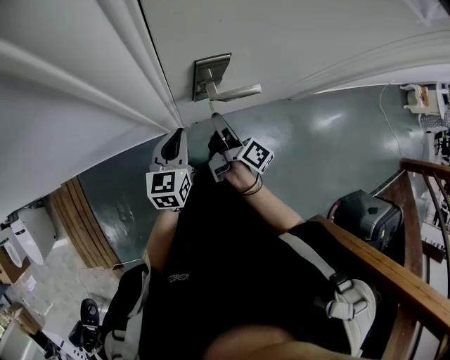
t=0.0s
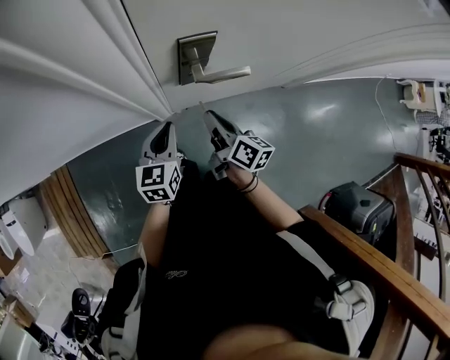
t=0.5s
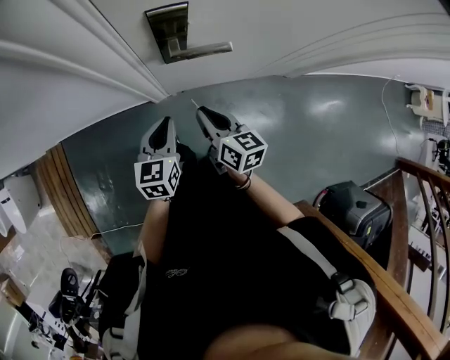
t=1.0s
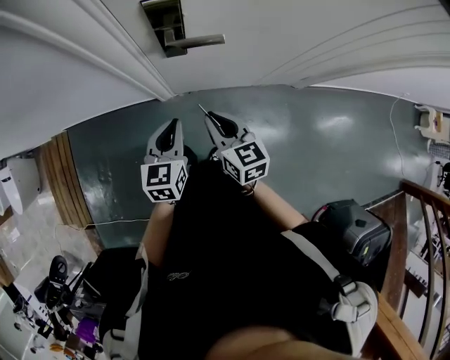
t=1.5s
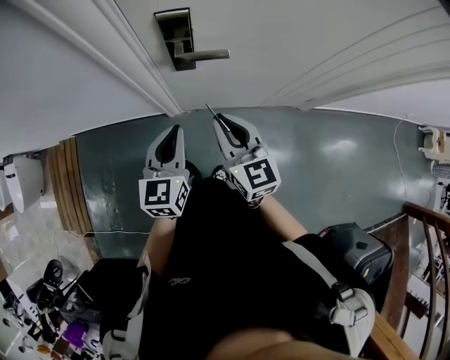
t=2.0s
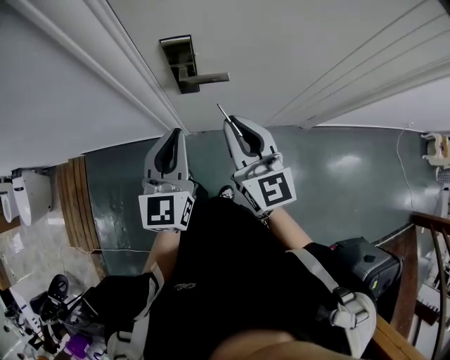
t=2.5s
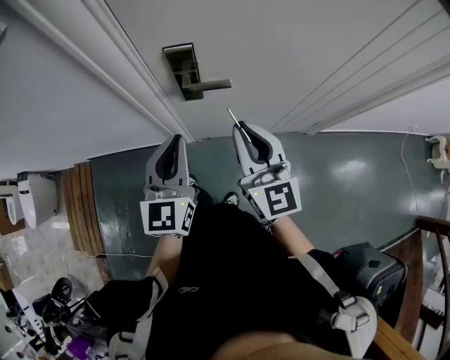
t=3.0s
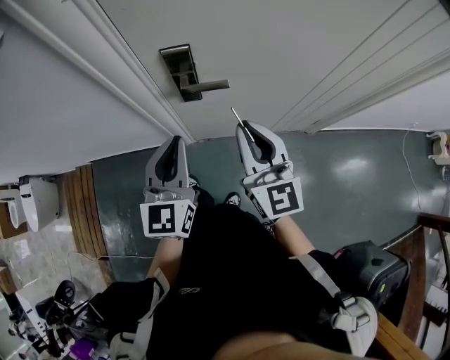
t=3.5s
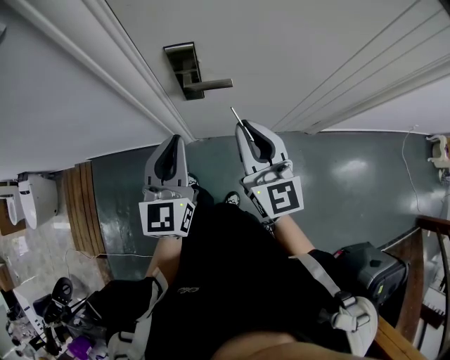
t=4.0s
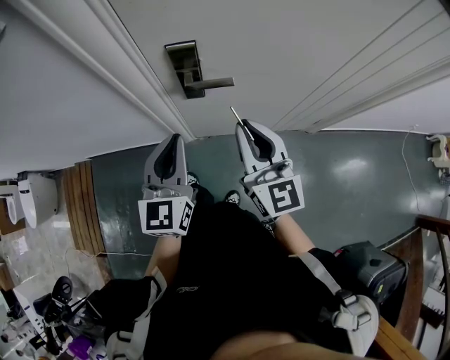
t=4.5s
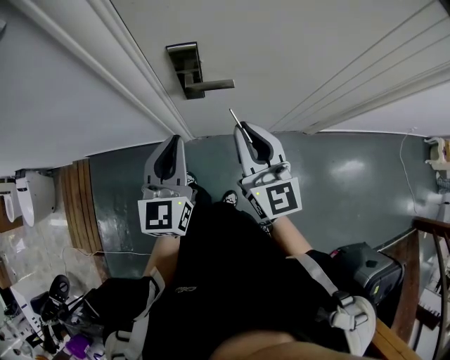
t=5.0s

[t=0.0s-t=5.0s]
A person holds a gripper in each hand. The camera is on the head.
t=0.0s to t=2.5s: Both grippers travel together upward, backward and to the right, approximately 20 cm. The right gripper rolls counterclockwise, seen from behind, by roughly 70 degrees. The left gripper changes its angle by approximately 30 degrees.
t=2.5s to t=5.0s: The grippers move only a little.

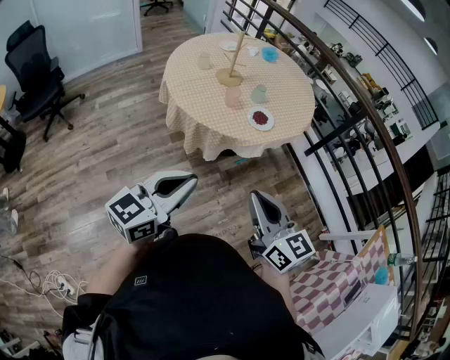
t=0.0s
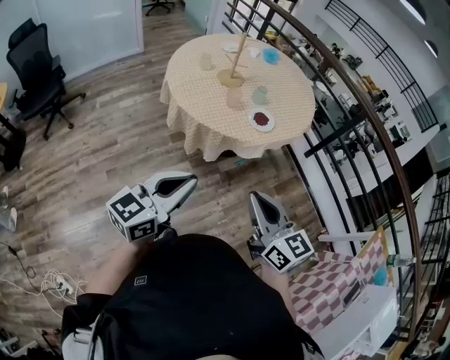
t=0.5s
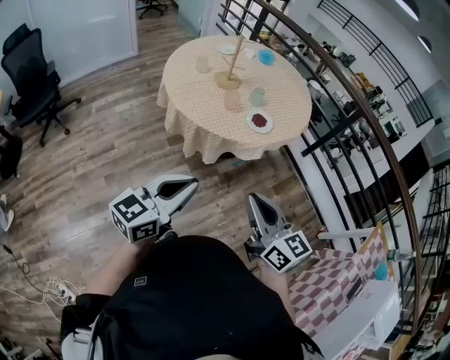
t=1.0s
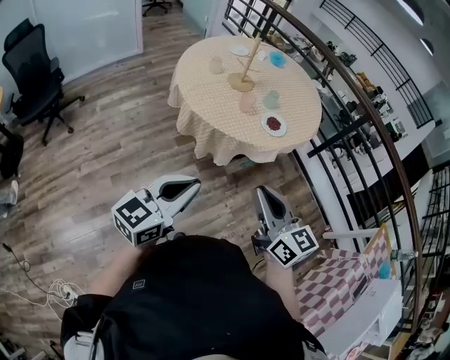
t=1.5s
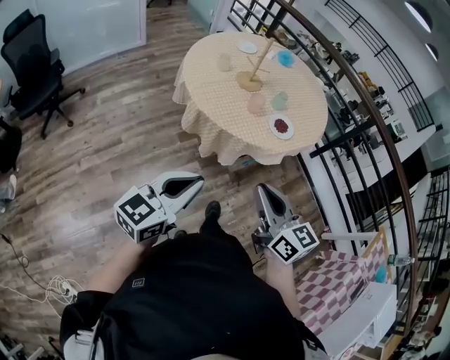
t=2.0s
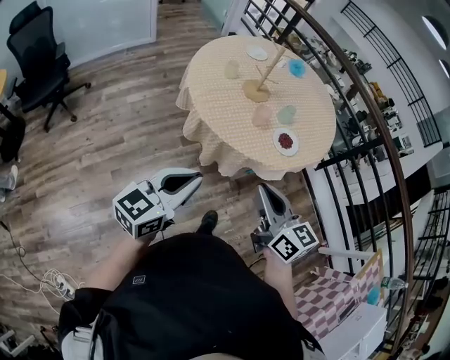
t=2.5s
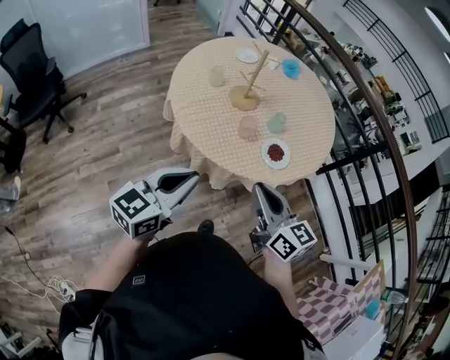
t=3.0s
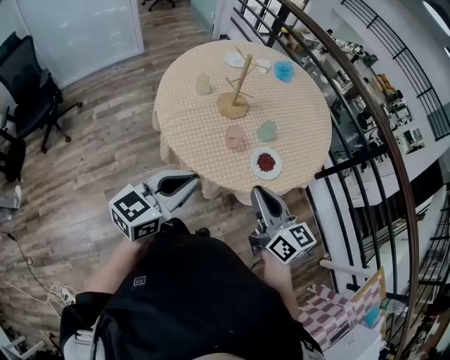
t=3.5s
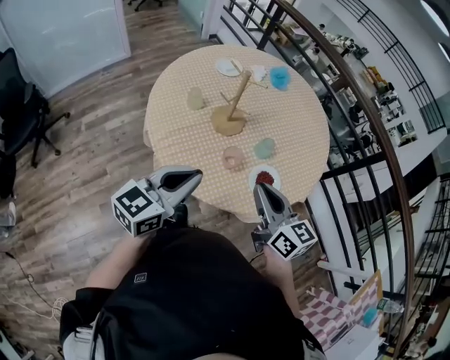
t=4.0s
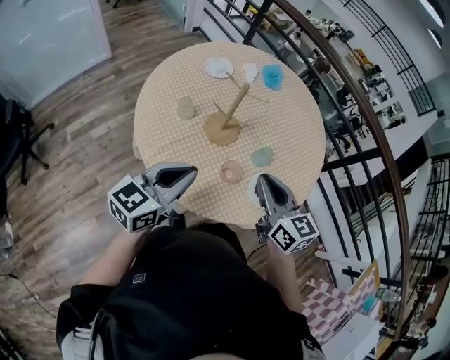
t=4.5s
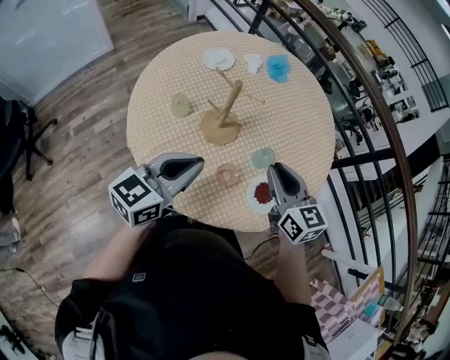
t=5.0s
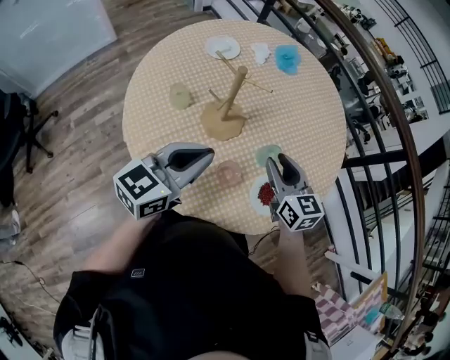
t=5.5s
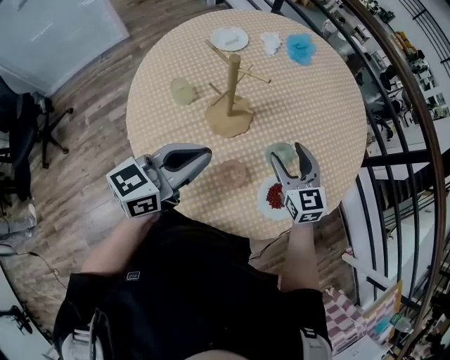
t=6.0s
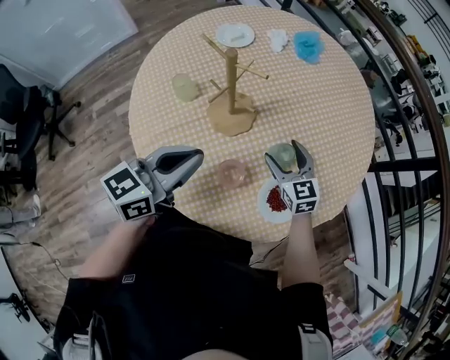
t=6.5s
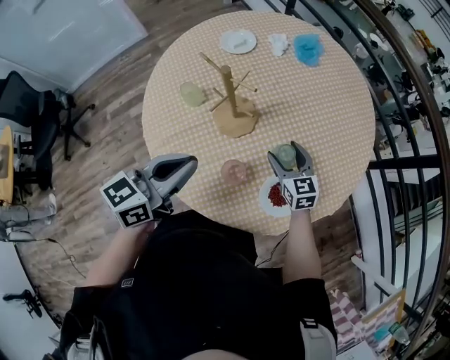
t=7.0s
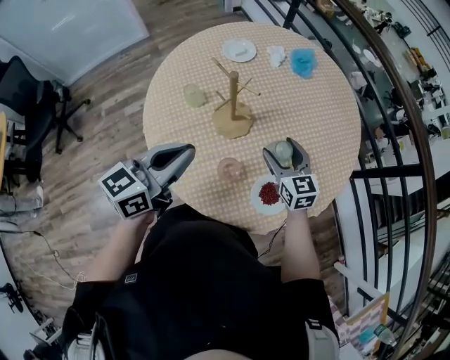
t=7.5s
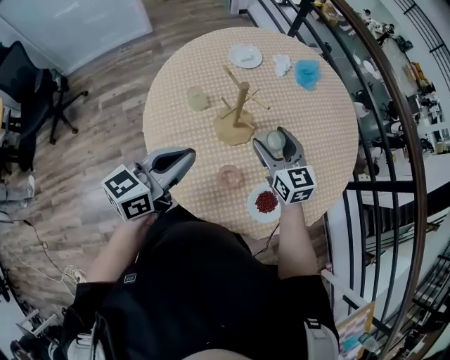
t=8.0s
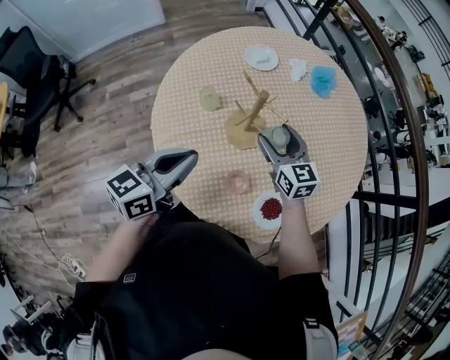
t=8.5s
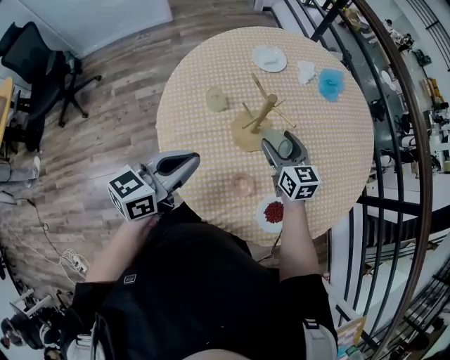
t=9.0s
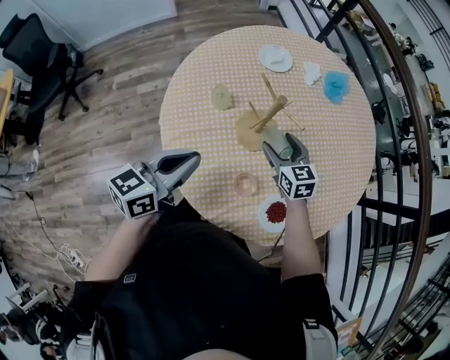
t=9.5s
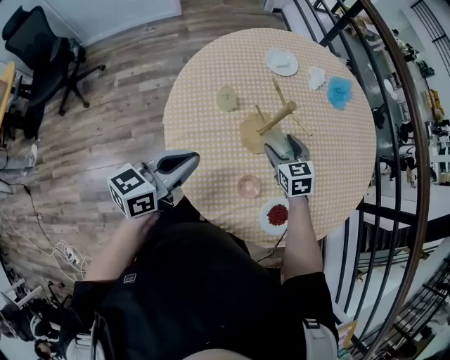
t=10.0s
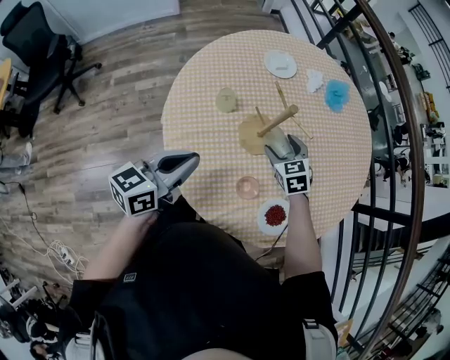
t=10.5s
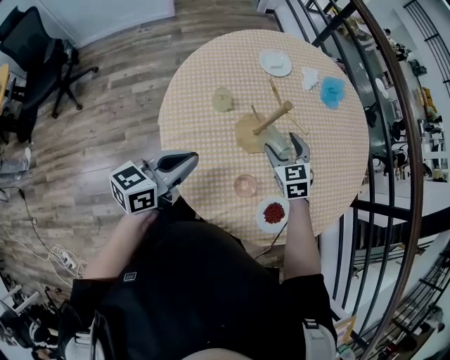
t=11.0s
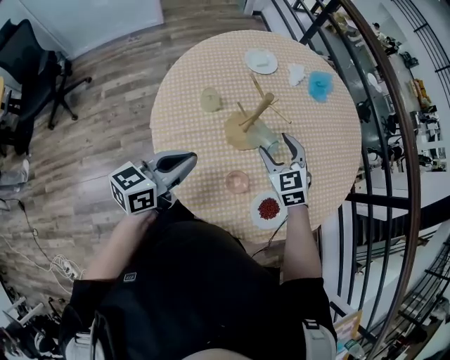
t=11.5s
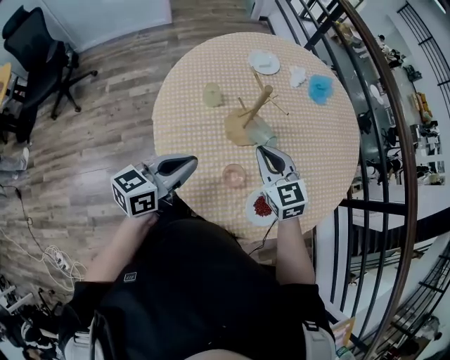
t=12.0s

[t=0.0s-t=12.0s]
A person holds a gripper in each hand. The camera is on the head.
t=0.0s to t=2.0s: Both grippers travel together to the left, some 15 cm.
t=2.0s to t=4.0s: The two grippers go about 35 cm forward.
t=4.0s to t=6.0s: Both grippers move forward and downward, approximately 25 cm. The right gripper swivels some 30 degrees, and opens.
t=6.0s to t=8.0s: The left gripper shifts approximately 5 cm upward, while the right gripper shifts approximately 10 cm upward and to the left.
t=8.0s to t=10.0s: The right gripper goes some 10 cm downward, and rotates roughly 20 degrees. Meanwhile the left gripper goes approximately 5 cm to the left.
t=10.0s to t=12.0s: The right gripper shifts about 15 cm upward and backward, and closes. Meanwhile the left gripper ends up some 5 cm from where it was.

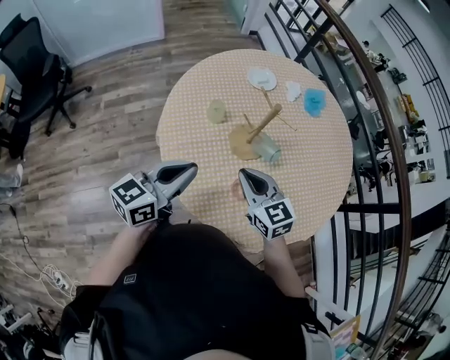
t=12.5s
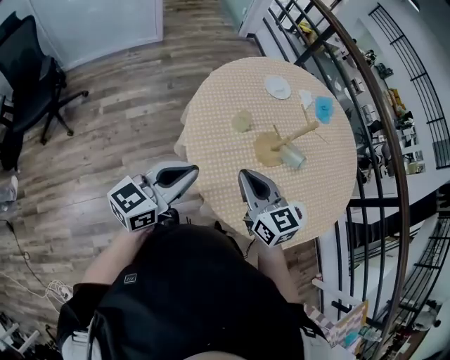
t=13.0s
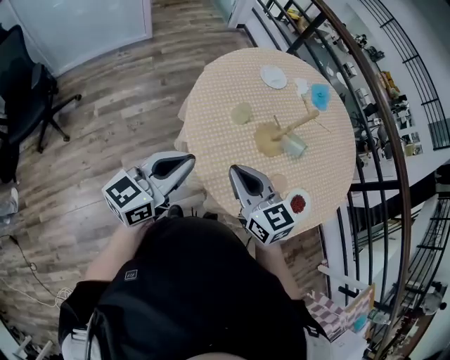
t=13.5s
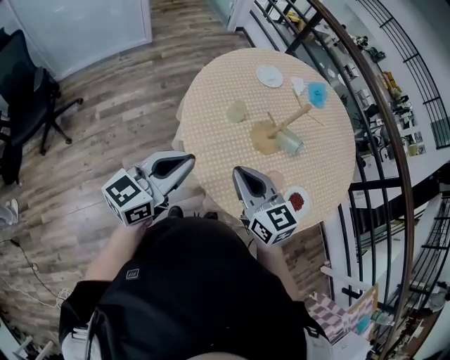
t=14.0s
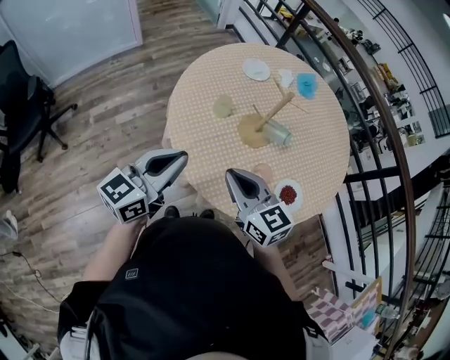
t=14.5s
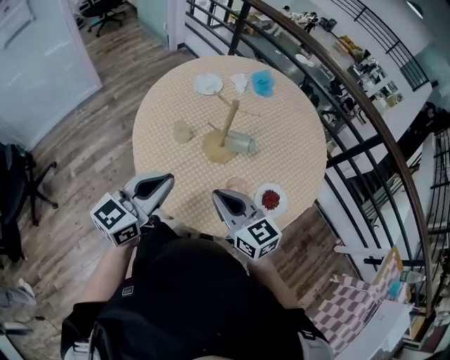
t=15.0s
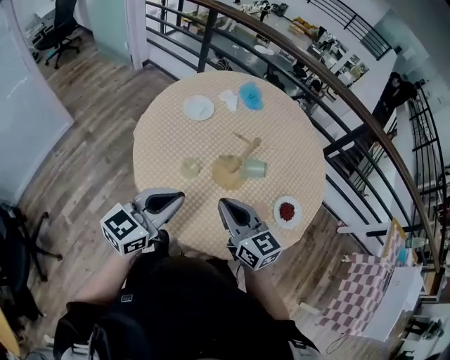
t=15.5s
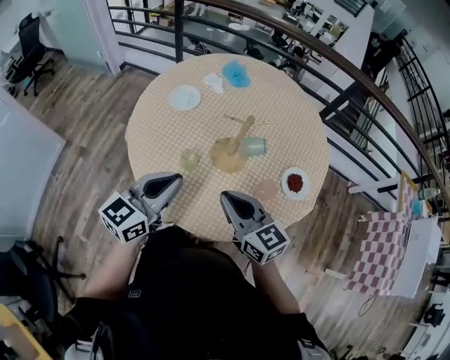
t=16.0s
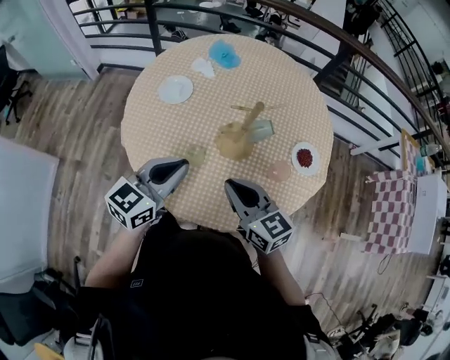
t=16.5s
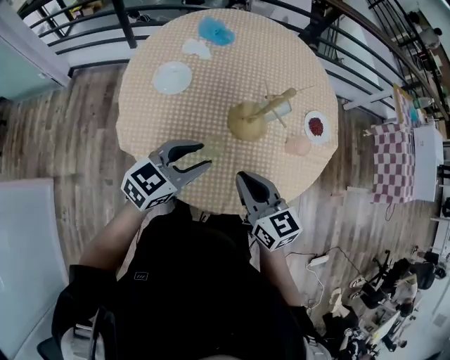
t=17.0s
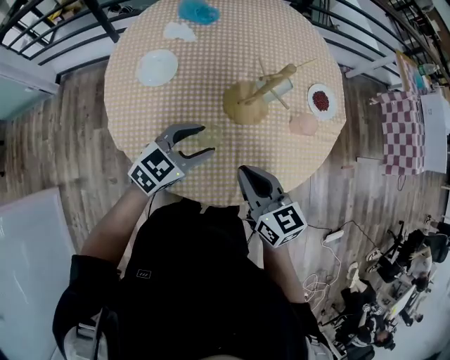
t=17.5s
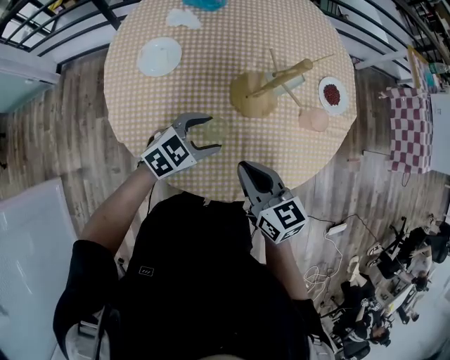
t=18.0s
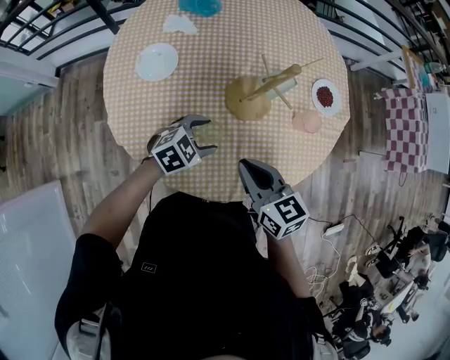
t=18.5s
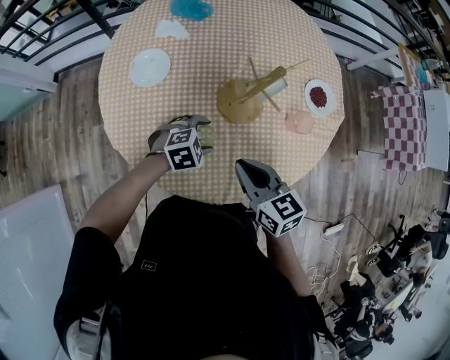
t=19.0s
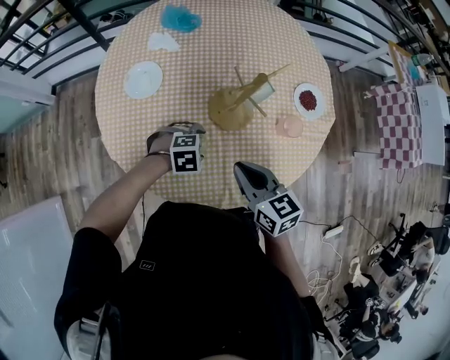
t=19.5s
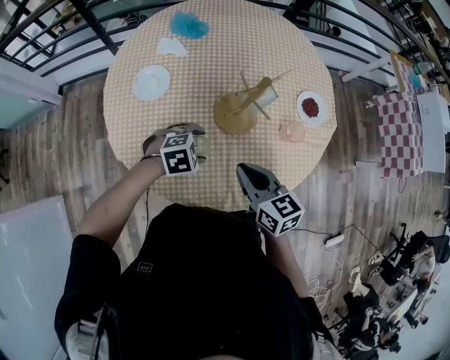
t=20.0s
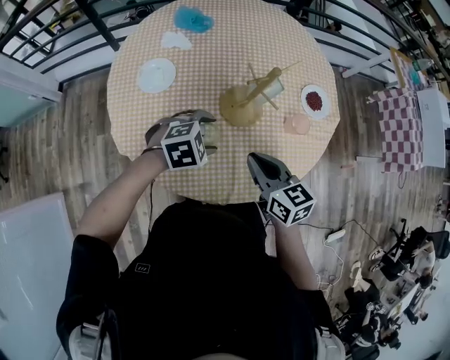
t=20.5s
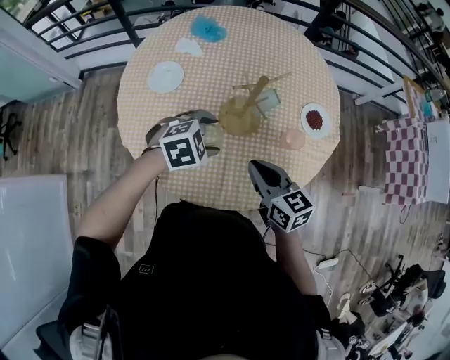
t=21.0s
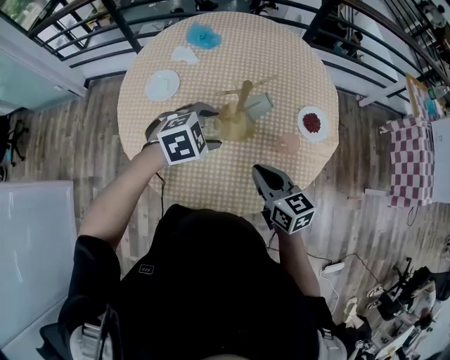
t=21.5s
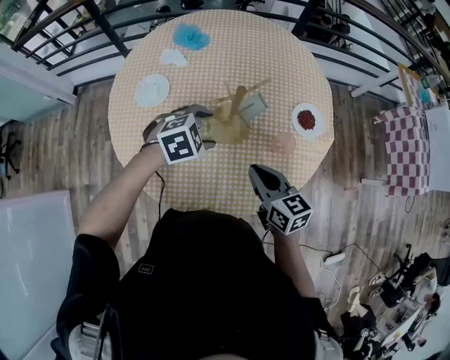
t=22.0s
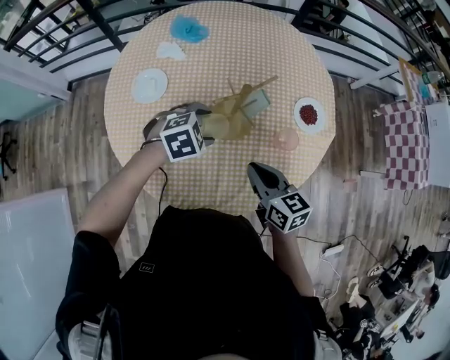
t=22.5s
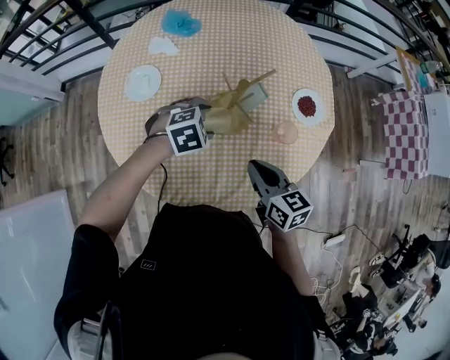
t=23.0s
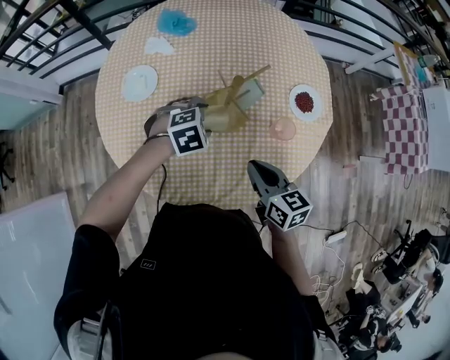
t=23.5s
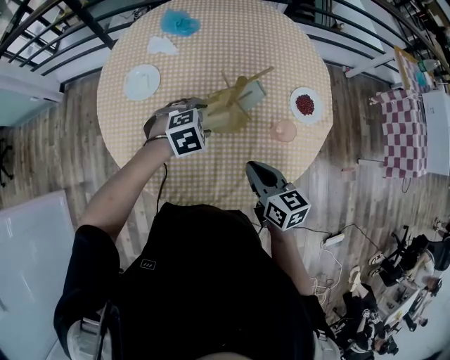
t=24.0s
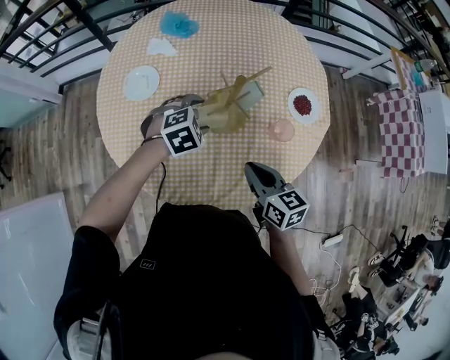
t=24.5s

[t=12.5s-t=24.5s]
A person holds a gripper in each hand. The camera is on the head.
t=12.5s to t=14.5s: The left gripper moves to the left, some 10 cm. Meanwhile the right gripper is displaced to the left, backward and upward by roughly 15 cm.
t=14.5s to t=16.5s: The right gripper changes place by roughly 15 cm, and turns by about 50 degrees; the left gripper ends up approximately 25 cm from where it was, and rotates approximately 50 degrees.
t=16.5s to t=18.5s: The left gripper travels downward by approximately 20 cm, points its fingers roughly 30 degrees further downward, and opens. The right gripper shifts roughly 10 cm downward, and rotates some 30 degrees.
t=18.5s to t=20.5s: The left gripper goes some 5 cm upward.
t=20.5s to t=22.5s: The left gripper travels forward by some 5 cm. Meanwhile the right gripper shifts approximately 5 cm to the right.
t=22.5s to t=24.5s: The grippers make only small movements.
